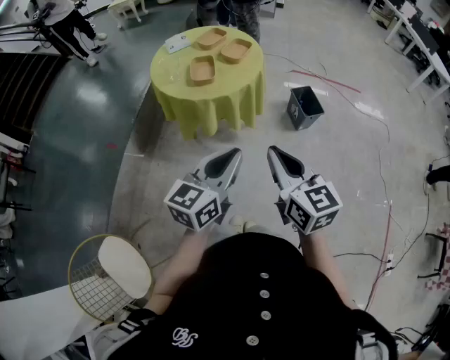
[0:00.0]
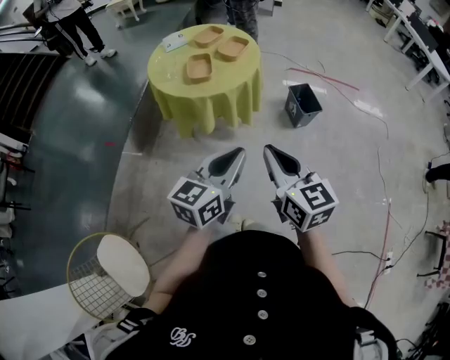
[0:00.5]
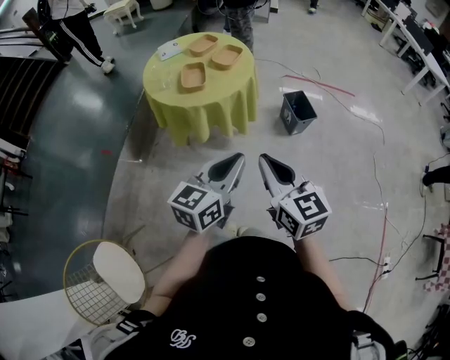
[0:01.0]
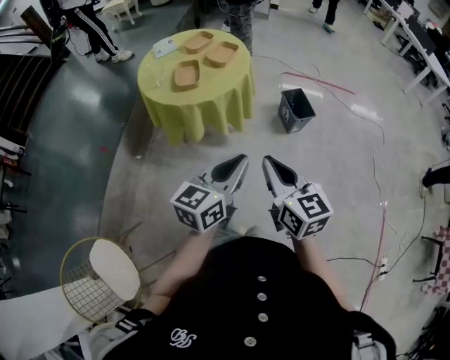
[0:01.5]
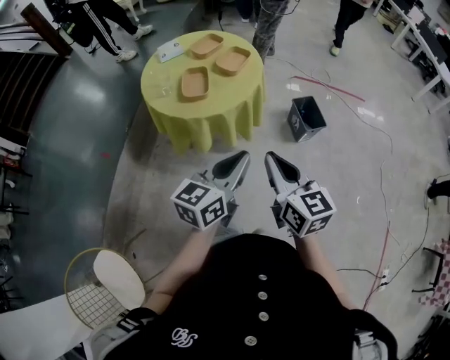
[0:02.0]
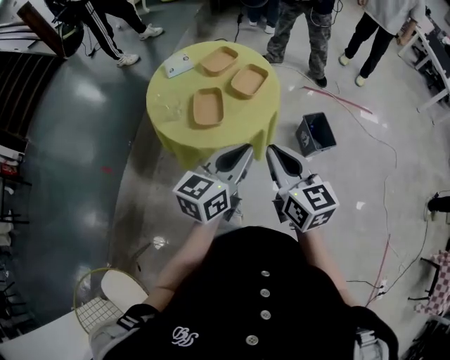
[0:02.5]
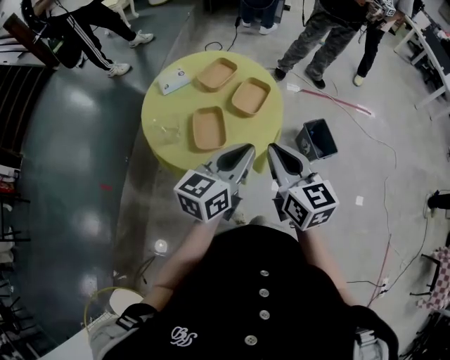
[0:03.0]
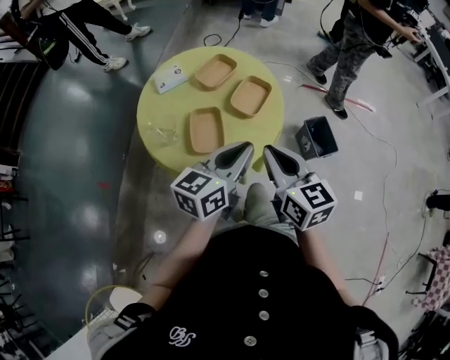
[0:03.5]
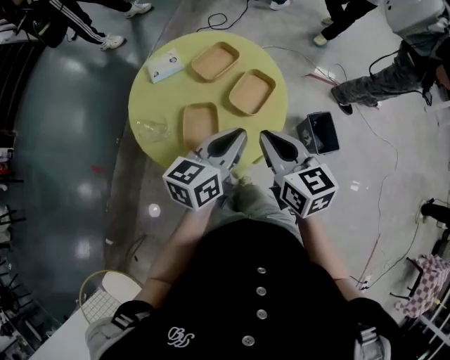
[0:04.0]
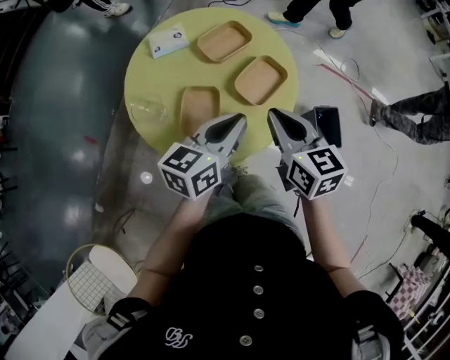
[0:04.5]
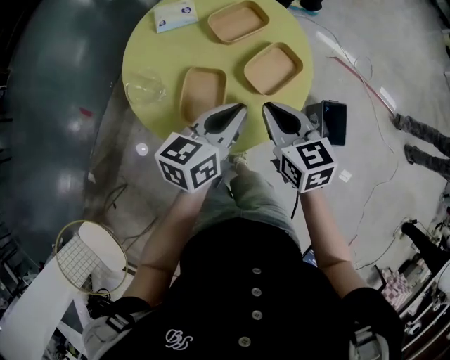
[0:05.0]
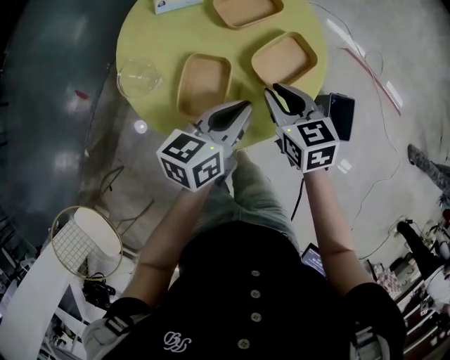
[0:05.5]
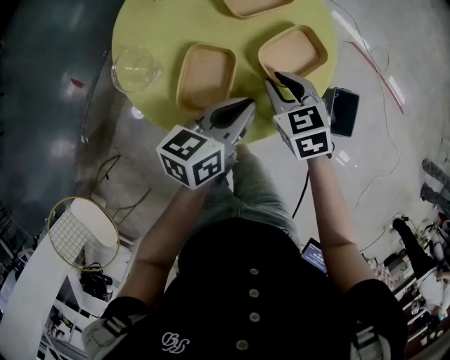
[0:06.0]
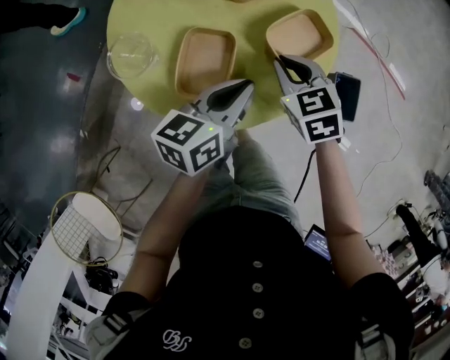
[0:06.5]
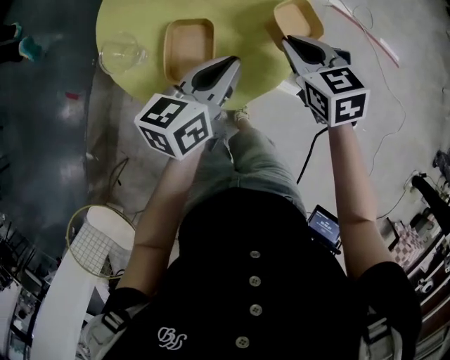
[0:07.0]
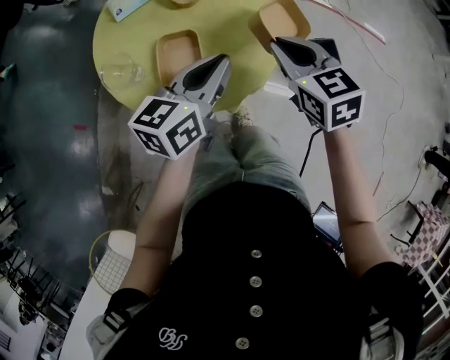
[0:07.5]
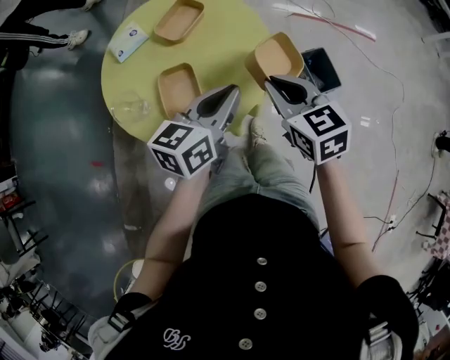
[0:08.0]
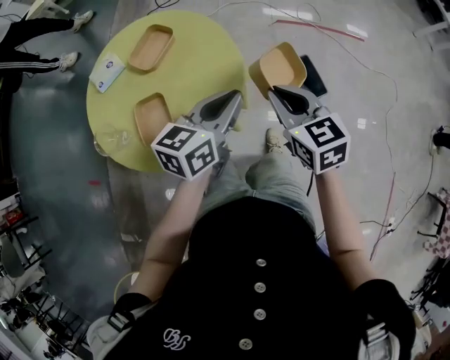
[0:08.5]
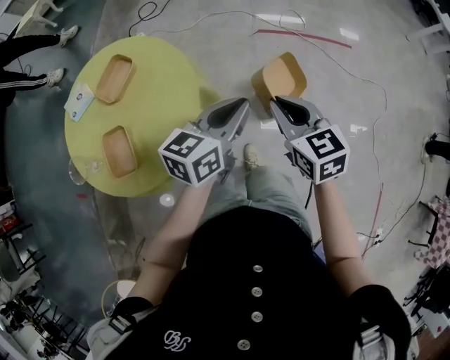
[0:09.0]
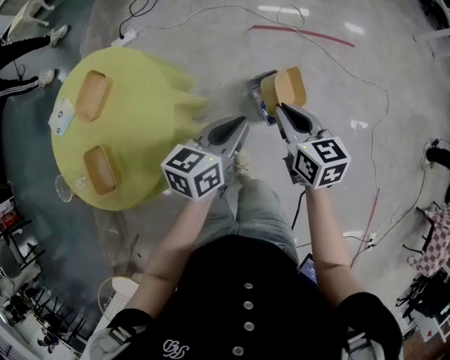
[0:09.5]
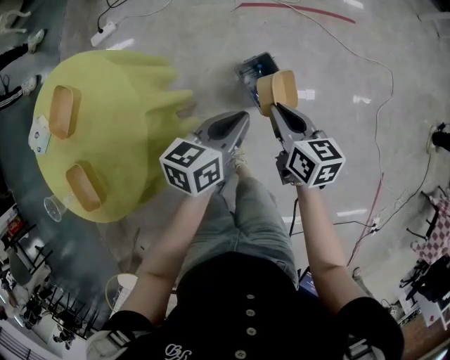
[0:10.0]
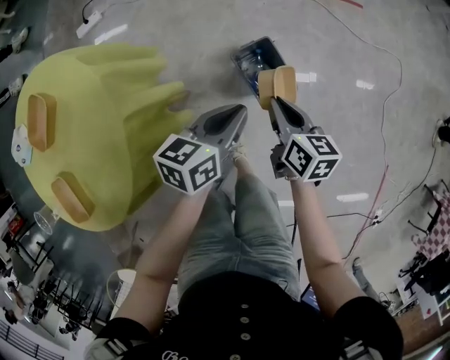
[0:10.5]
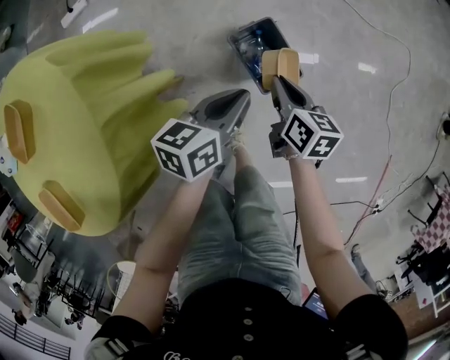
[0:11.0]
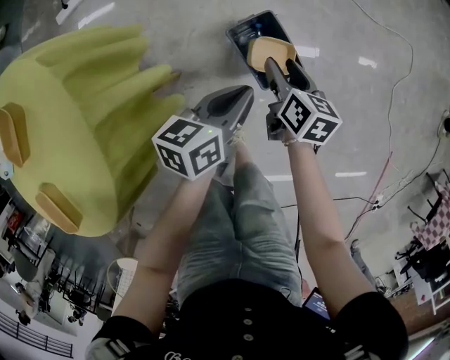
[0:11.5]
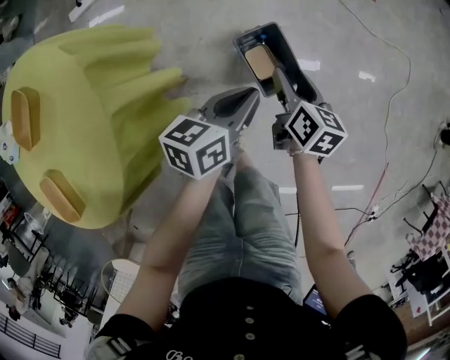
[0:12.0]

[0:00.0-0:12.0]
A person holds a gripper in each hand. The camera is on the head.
0:00.0 to 0:02.0: The two grippers go approximately 10 cm forward.
0:02.0 to 0:04.0: The two grippers go approximately 25 cm forward.
0:04.0 to 0:06.0: The left gripper goes roughly 10 cm downward. The right gripper travels downward and forward by about 20 cm, and turns by some 40 degrees.
0:06.0 to 0:08.0: The right gripper shifts approximately 20 cm upward, backward and to the right, and swivels roughly 30 degrees. The left gripper moves upward, some 10 cm, and swivels roughly 30 degrees.
0:08.0 to 0:10.0: The grippers both shift to the right, forward and downward by about 40 cm. The right gripper swivels roughly 40 degrees.
0:10.0 to 0:12.0: The left gripper travels downward by about 10 cm. The right gripper is displaced downward and forward by about 15 cm, and opens.

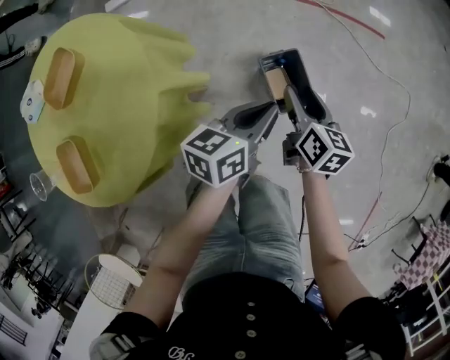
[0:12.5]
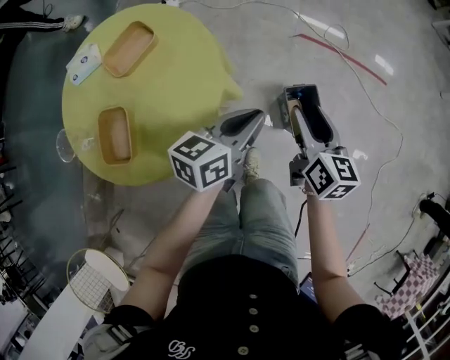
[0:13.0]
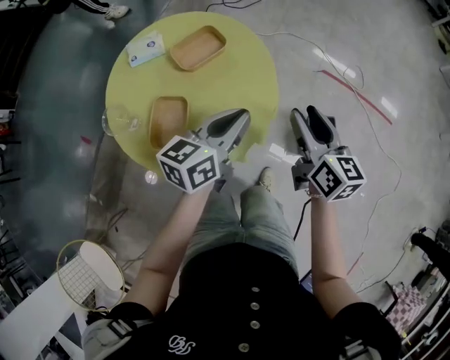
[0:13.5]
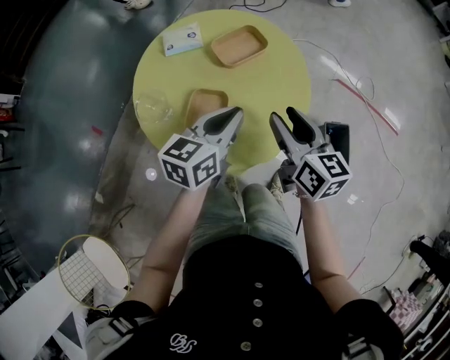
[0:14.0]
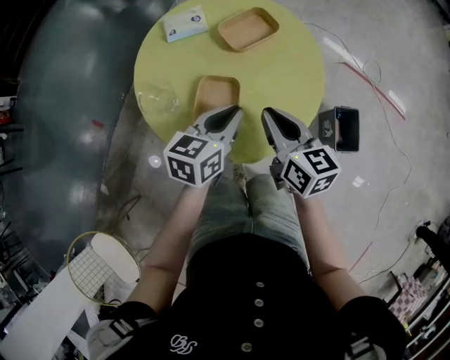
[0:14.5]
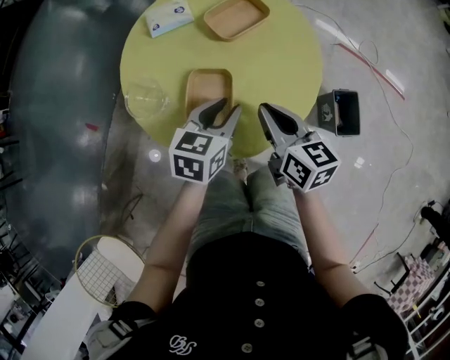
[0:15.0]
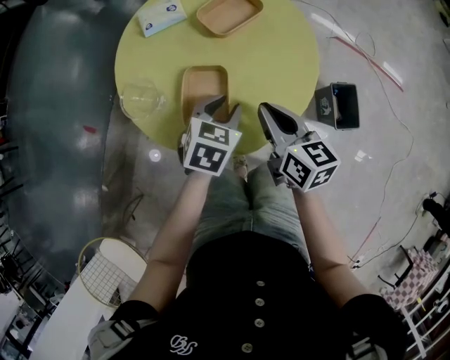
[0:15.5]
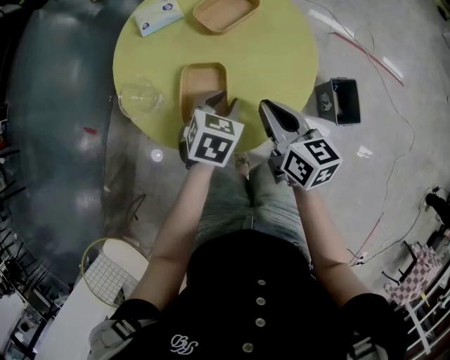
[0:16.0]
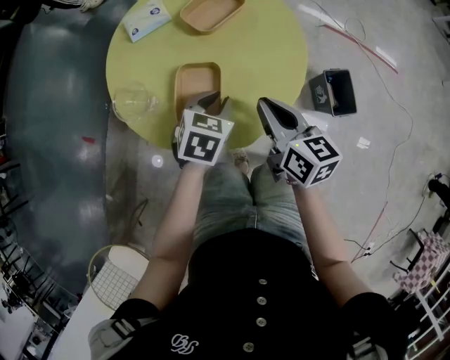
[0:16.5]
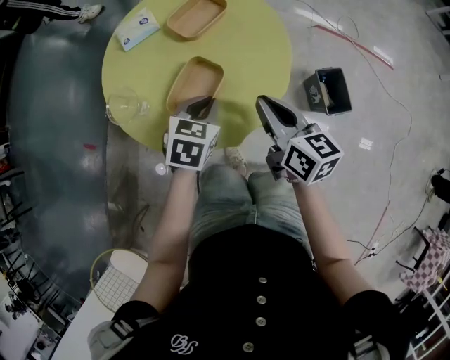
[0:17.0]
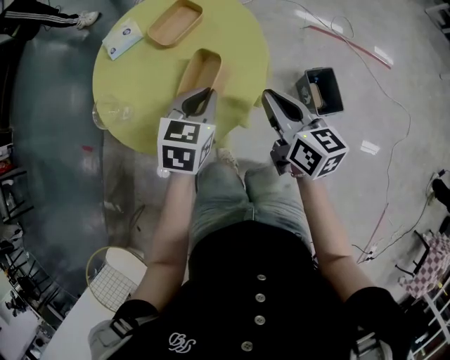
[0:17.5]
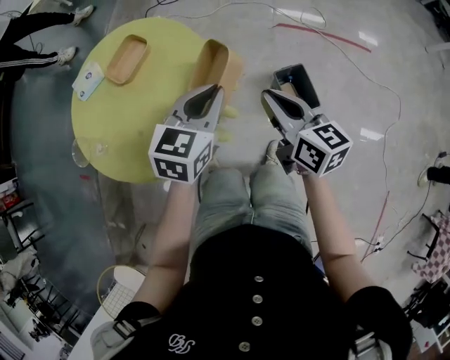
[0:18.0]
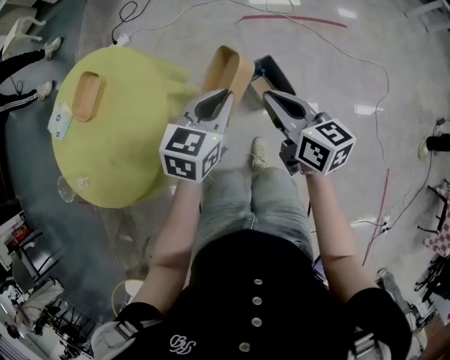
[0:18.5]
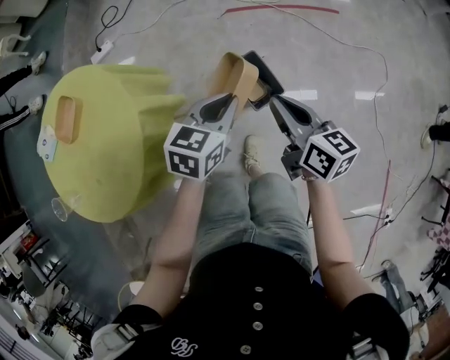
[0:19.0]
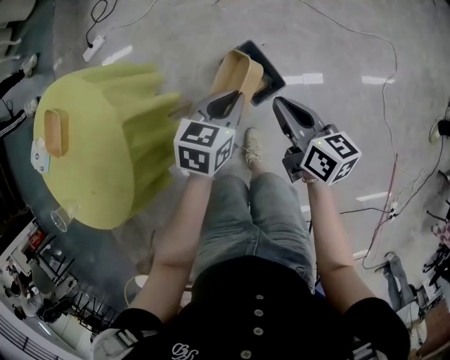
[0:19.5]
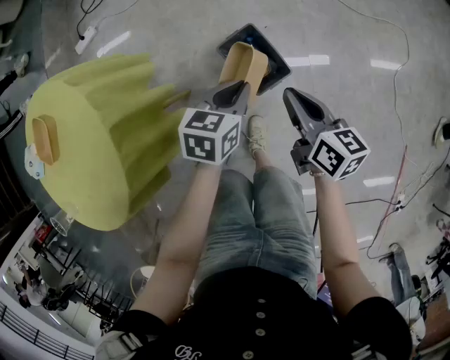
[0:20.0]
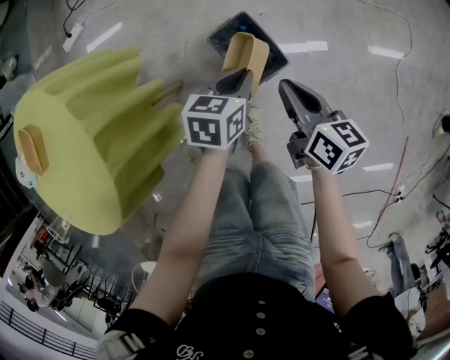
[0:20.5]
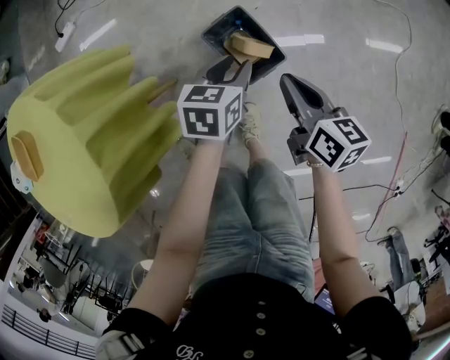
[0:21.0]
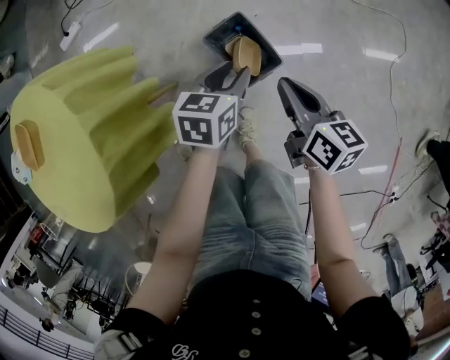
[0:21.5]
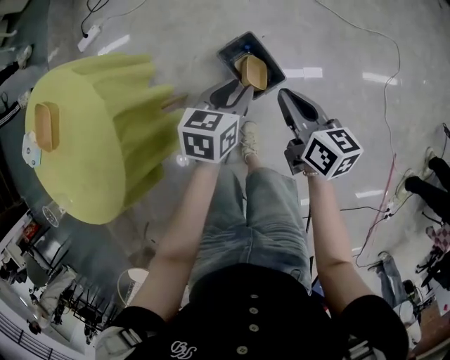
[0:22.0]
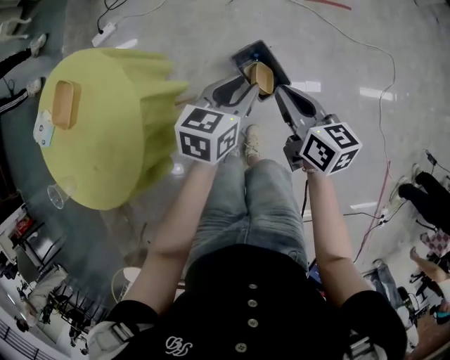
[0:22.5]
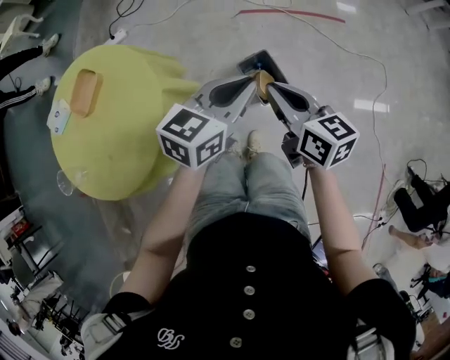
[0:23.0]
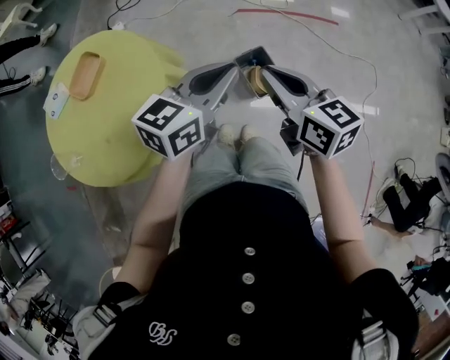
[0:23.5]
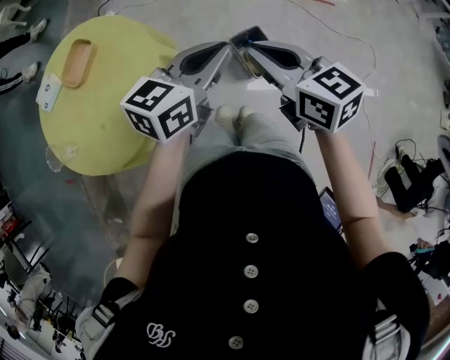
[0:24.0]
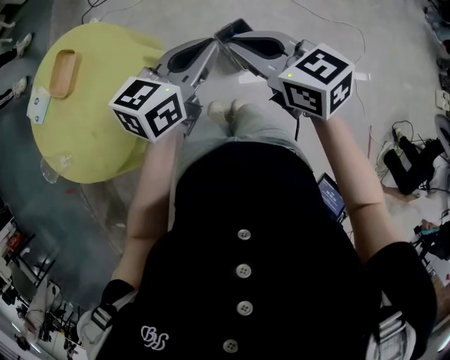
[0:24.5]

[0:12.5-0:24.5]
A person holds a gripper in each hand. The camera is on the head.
0:12.5 to 0:14.5: Both grippers are carried some 50 cm. The right gripper rotates about 40 degrees, and closes its fingers; the left gripper changes its angle by approximately 30 degrees.
0:14.5 to 0:16.5: The left gripper shifts some 10 cm downward, and rotates some 30 degrees.
0:16.5 to 0:18.5: Both grippers move to the right, some 40 cm. The left gripper turns by approximately 30 degrees.
0:18.5 to 0:20.5: Both grippers travel together downward and to the right, some 30 cm. The right gripper rotates some 20 degrees. Meanwhile the left gripper rotates roughly 30 degrees.
0:20.5 to 0:22.5: The right gripper shifts some 15 cm upward and to the left; the left gripper shifts some 20 cm upward, and opens its fingers.
0:22.5 to 0:24.5: Both grippers move upward, to the left and backward, about 20 cm. The left gripper closes up. The right gripper swivels about 30 degrees.

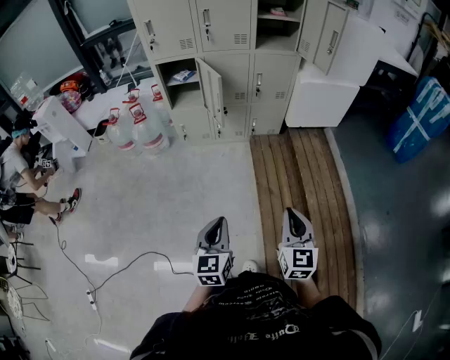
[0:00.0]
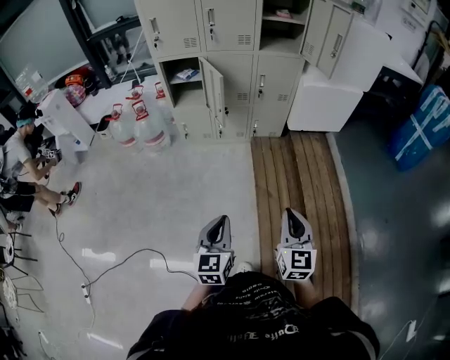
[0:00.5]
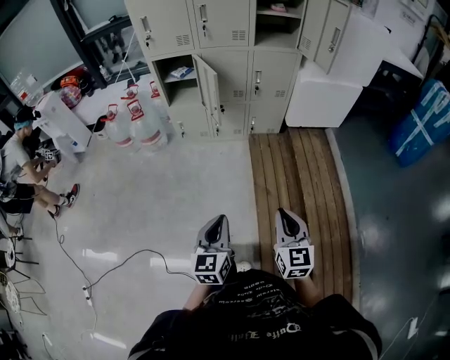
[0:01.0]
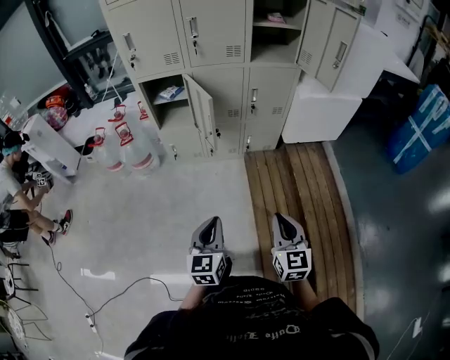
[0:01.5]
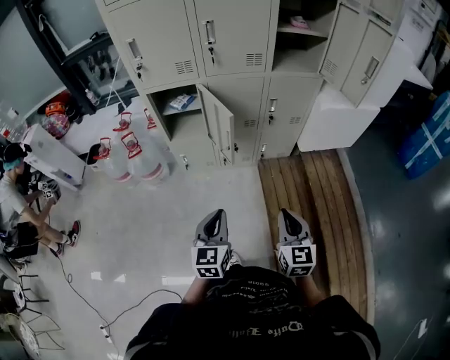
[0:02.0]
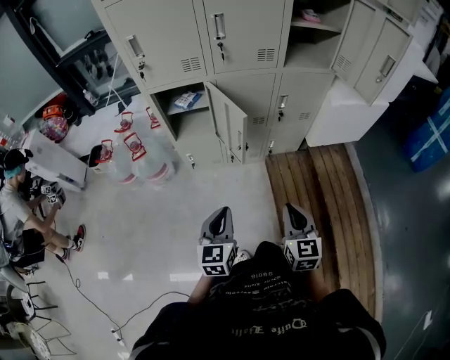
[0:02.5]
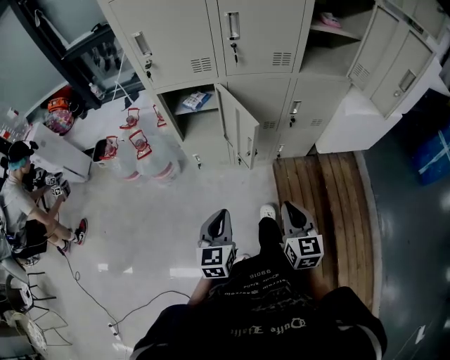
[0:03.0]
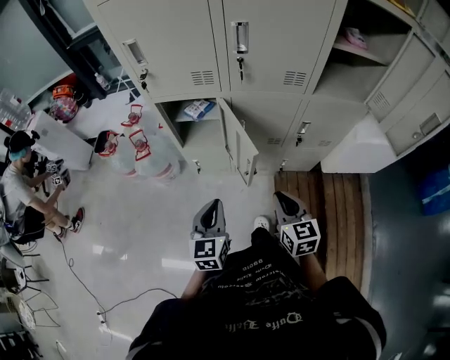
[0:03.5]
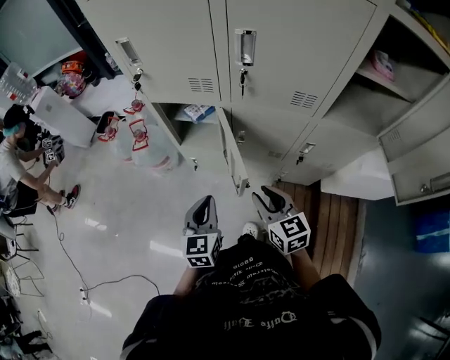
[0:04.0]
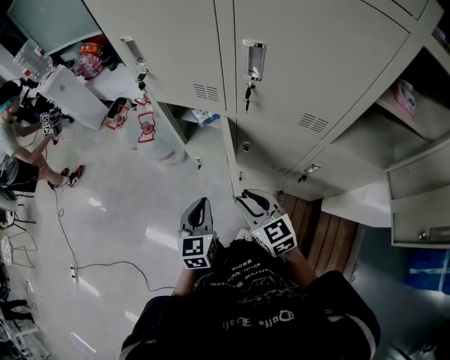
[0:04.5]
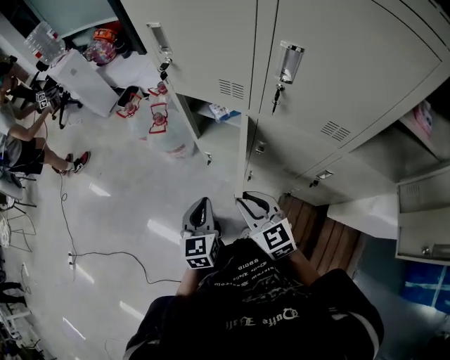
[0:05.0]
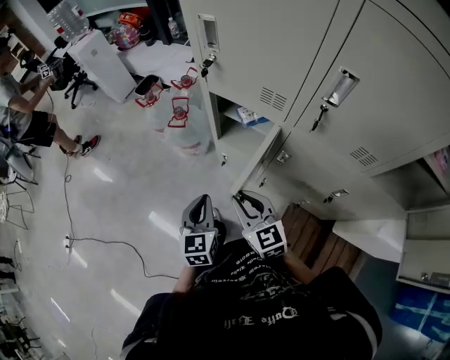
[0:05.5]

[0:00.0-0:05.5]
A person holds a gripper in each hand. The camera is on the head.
0:00.0 to 0:02.0: The two grippers go approximately 30 cm forward.
0:02.0 to 0:03.5: Both grippers move forward, some 25 cm.
0:03.5 to 0:05.5: The left gripper shifts by approximately 10 cm, and turns by about 30 degrees, while the right gripper moves about 20 cm, and rotates roughly 40 degrees.
